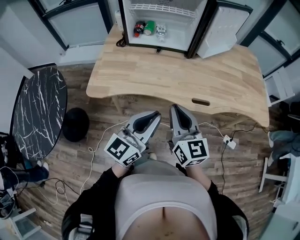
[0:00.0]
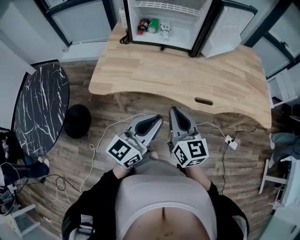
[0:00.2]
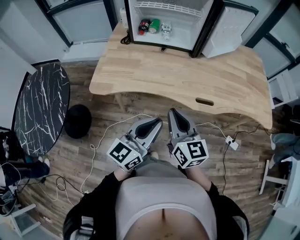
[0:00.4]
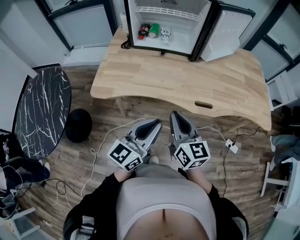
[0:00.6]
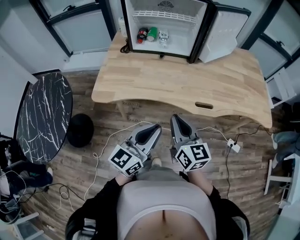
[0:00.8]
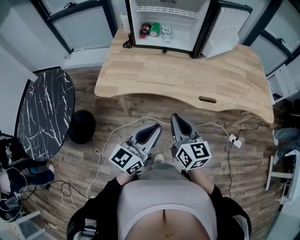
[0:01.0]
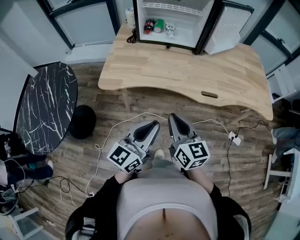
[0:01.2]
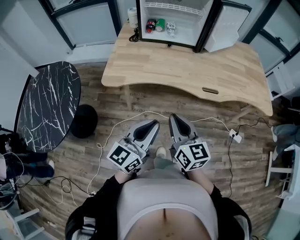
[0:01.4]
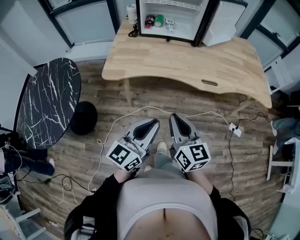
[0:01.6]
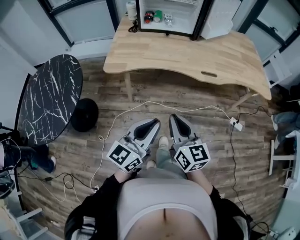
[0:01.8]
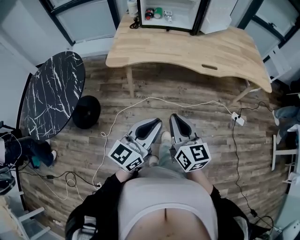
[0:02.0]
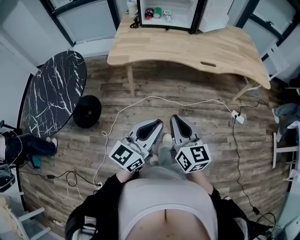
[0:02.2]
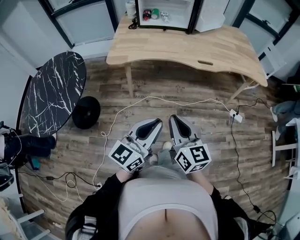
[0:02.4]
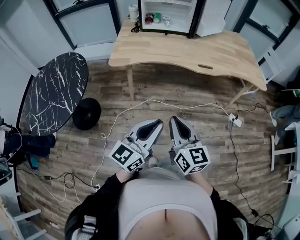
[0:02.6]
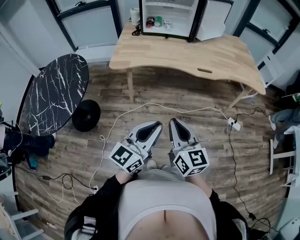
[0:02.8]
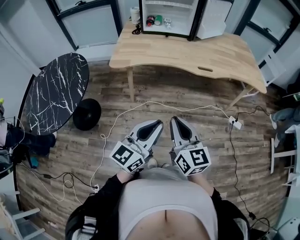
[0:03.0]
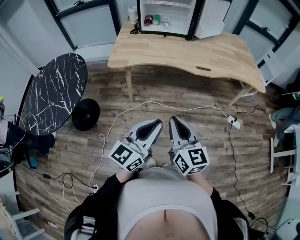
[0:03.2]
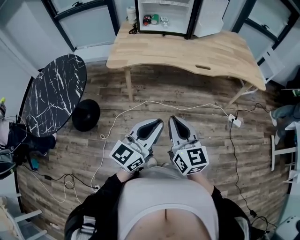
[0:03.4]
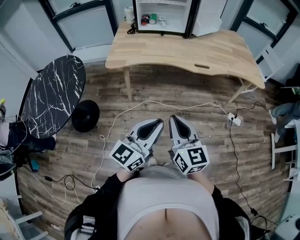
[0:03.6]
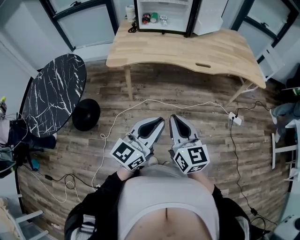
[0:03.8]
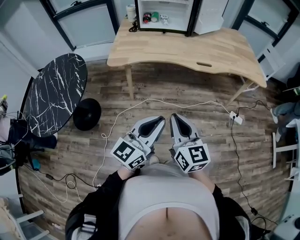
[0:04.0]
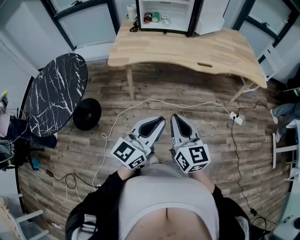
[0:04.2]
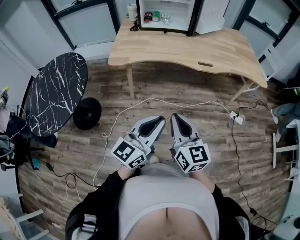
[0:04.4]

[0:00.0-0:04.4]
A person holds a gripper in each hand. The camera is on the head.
0:00.0 to 0:01.4: The two grippers go roughly 15 cm backward and to the left.
0:01.4 to 0:03.0: Both grippers travel together backward, approximately 20 cm.
0:03.0 to 0:04.4: The grippers stay close to where they were, moving slightly.

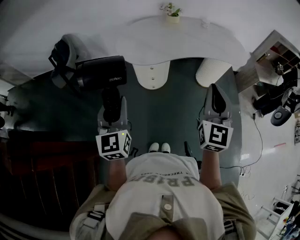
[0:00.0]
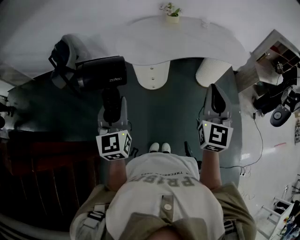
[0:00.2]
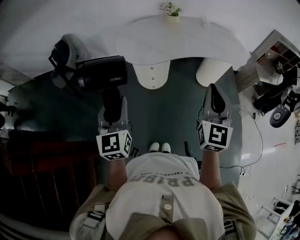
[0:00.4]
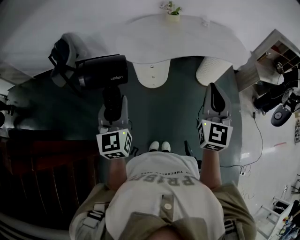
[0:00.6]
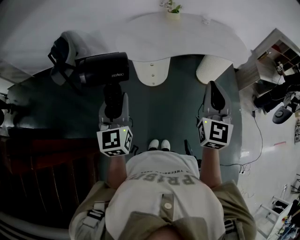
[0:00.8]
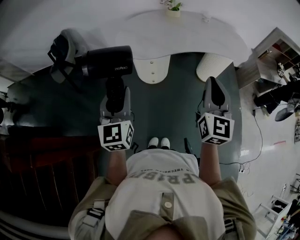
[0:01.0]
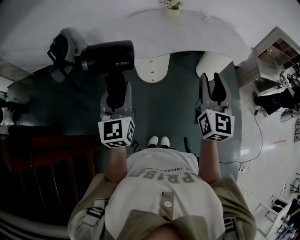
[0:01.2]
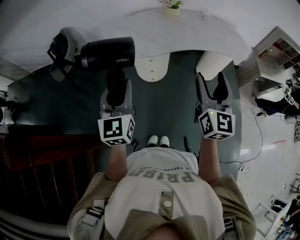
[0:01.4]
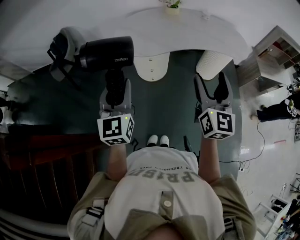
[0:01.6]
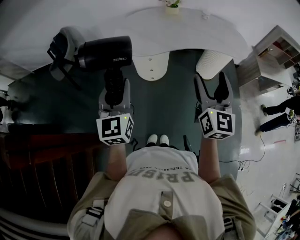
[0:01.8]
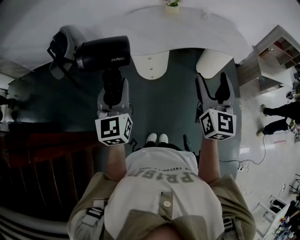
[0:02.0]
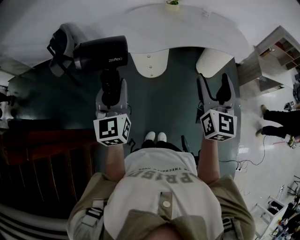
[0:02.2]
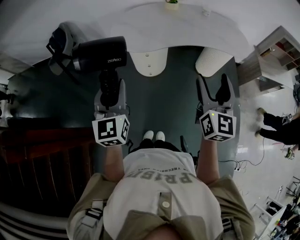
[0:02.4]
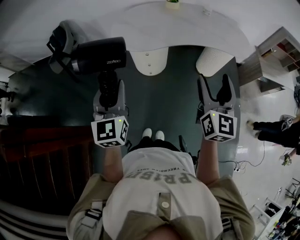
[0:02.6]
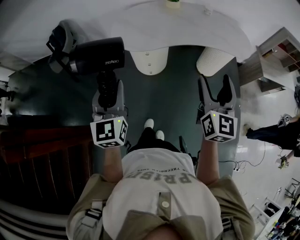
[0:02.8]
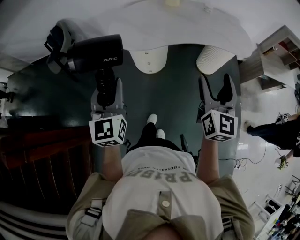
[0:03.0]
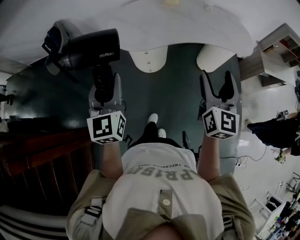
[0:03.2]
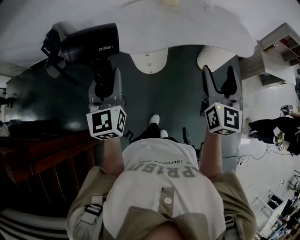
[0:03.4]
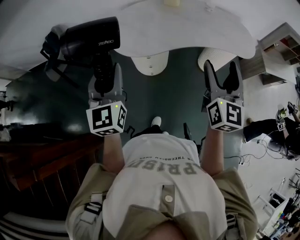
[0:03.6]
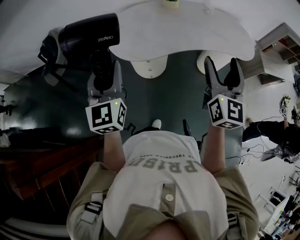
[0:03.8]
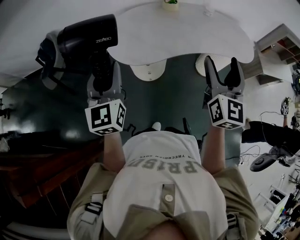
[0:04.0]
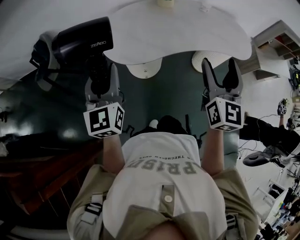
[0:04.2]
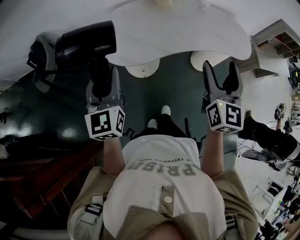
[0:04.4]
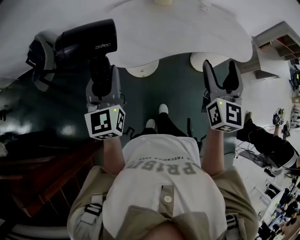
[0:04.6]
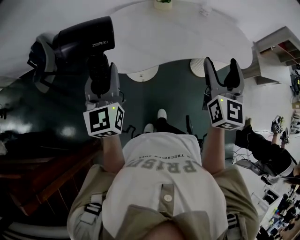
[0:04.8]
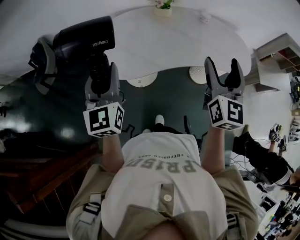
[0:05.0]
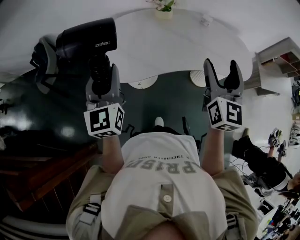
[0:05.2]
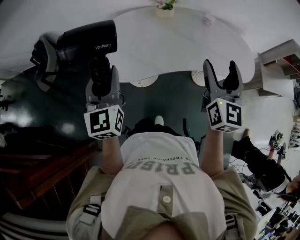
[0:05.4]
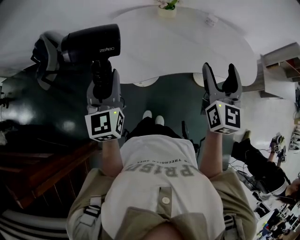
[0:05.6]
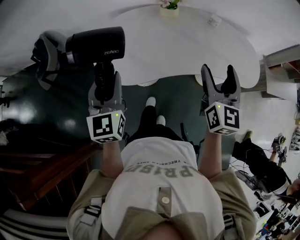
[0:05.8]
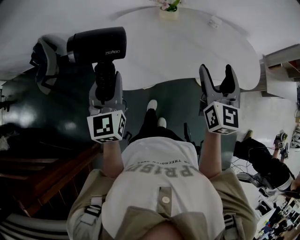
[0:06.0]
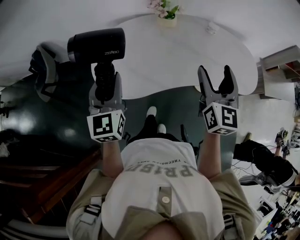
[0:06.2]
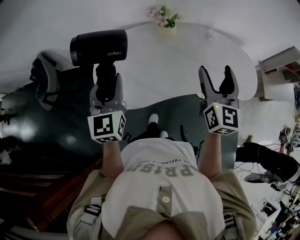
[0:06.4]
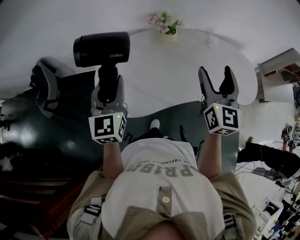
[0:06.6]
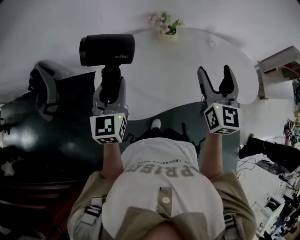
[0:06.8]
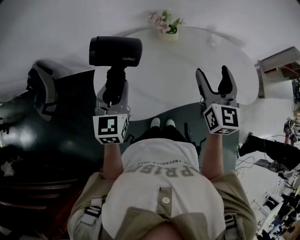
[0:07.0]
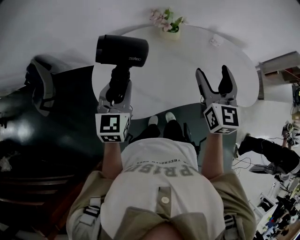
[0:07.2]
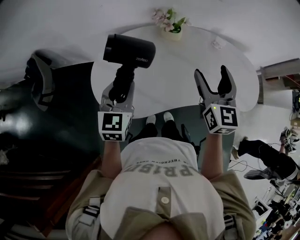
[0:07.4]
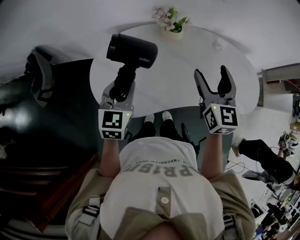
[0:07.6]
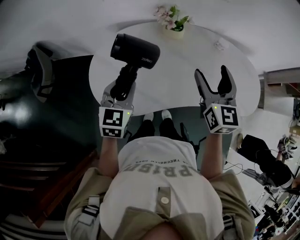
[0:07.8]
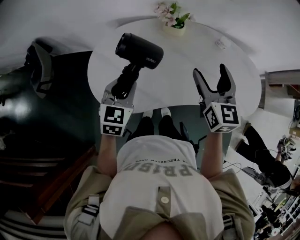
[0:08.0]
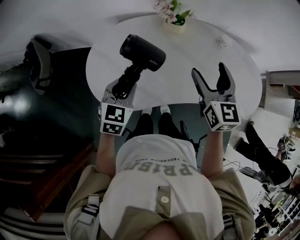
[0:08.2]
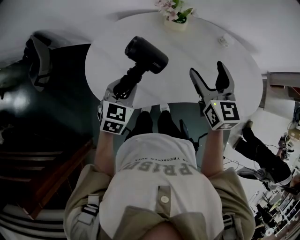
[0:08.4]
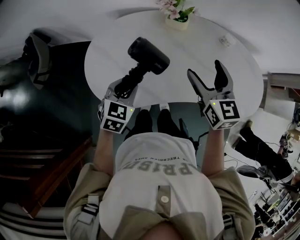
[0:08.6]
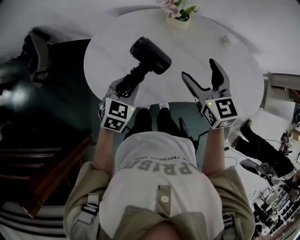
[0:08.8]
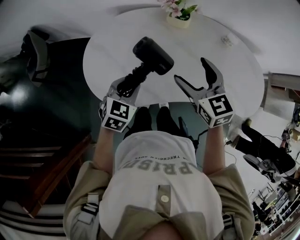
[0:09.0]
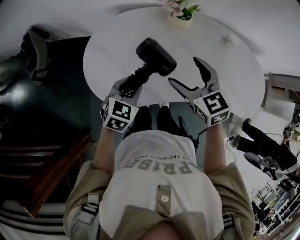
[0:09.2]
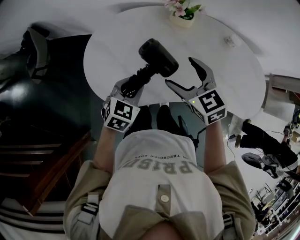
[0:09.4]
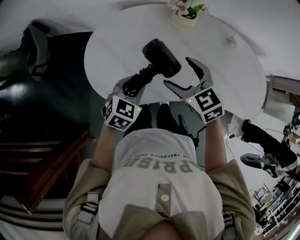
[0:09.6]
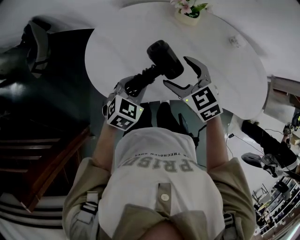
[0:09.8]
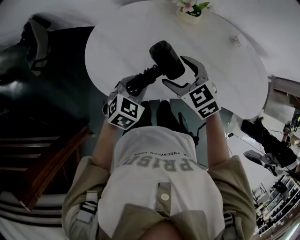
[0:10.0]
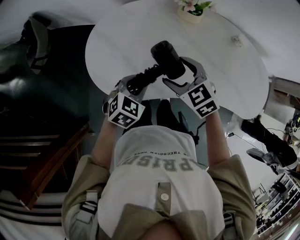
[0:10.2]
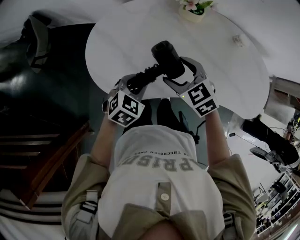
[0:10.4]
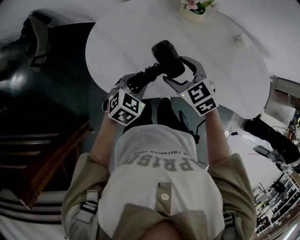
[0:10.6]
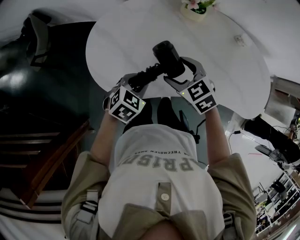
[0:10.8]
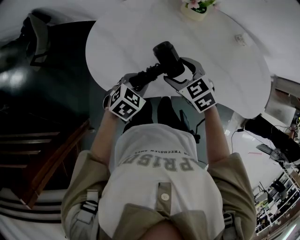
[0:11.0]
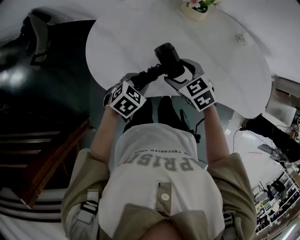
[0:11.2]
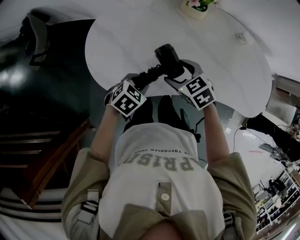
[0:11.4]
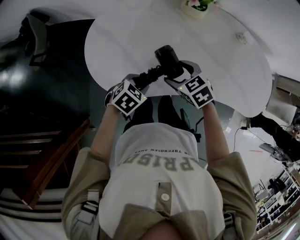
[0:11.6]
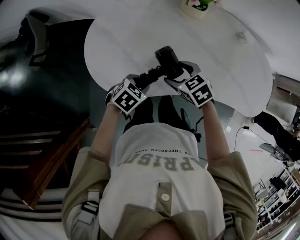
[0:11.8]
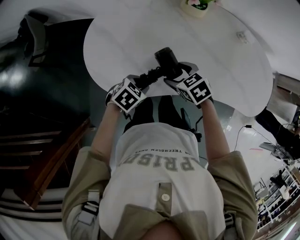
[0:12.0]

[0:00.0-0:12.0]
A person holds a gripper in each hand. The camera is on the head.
0:00.0 to 0:01.6: The right gripper opens its fingers; the left gripper changes place by some 5 cm.
0:01.6 to 0:03.0: There are only small adjustments of the grippers.
0:03.0 to 0:04.4: The grippers both shift forward by roughly 20 cm.
0:04.4 to 0:06.0: The left gripper heads forward and to the right, covering some 15 cm. The right gripper goes roughly 20 cm forward.
0:06.0 to 0:07.6: The right gripper moves forward, about 15 cm, while the left gripper shifts about 15 cm forward and downward.
0:07.6 to 0:09.0: The right gripper goes some 10 cm downward and to the left, and changes its angle by some 30 degrees; the left gripper moves downward, some 10 cm, and swivels some 20 degrees.
0:09.0 to 0:10.4: The right gripper travels downward and to the left by about 10 cm, and changes its angle by some 30 degrees.
0:10.4 to 0:12.0: The two grippers go approximately 10 cm downward. The right gripper swivels some 20 degrees. The left gripper turns by some 30 degrees.

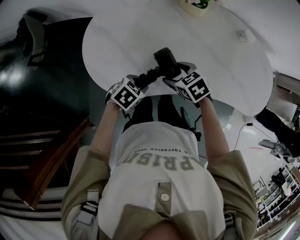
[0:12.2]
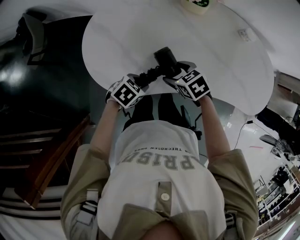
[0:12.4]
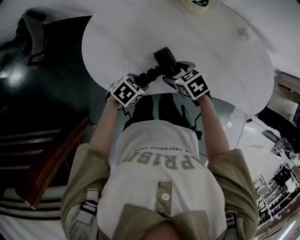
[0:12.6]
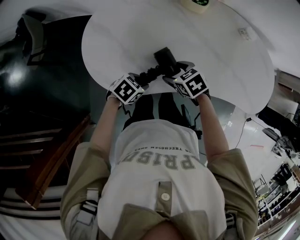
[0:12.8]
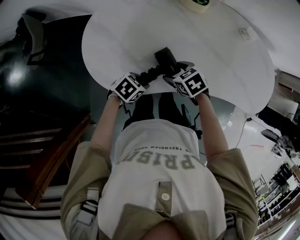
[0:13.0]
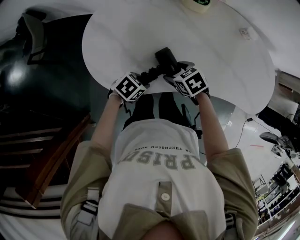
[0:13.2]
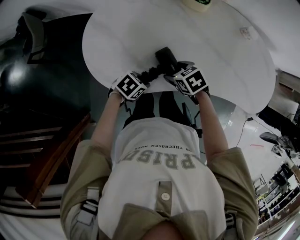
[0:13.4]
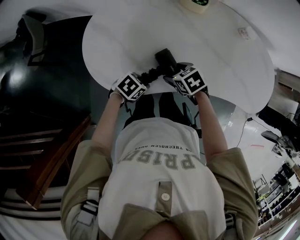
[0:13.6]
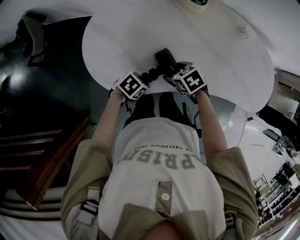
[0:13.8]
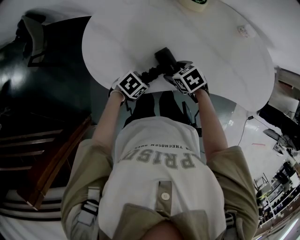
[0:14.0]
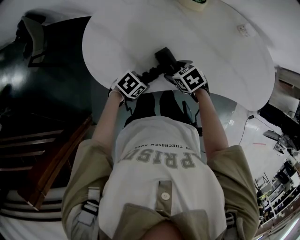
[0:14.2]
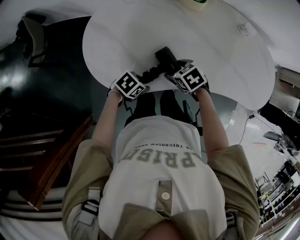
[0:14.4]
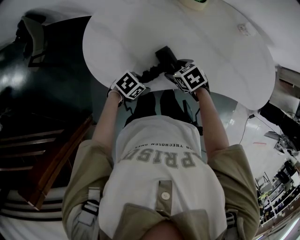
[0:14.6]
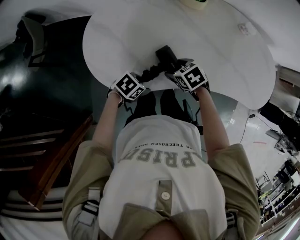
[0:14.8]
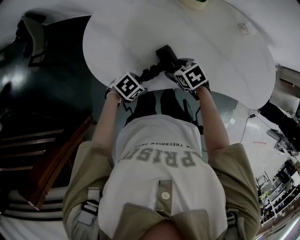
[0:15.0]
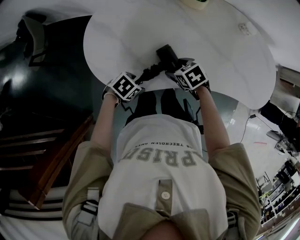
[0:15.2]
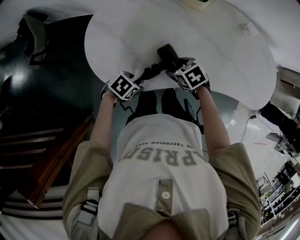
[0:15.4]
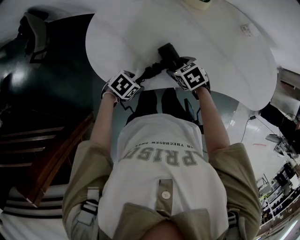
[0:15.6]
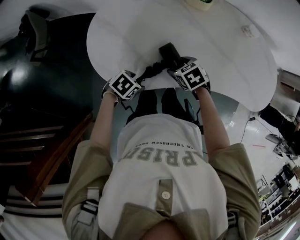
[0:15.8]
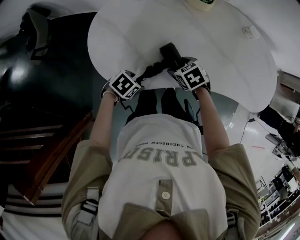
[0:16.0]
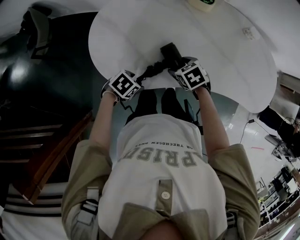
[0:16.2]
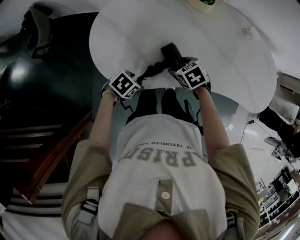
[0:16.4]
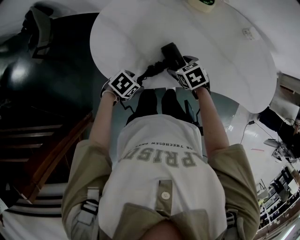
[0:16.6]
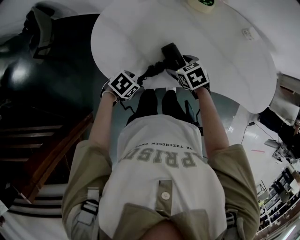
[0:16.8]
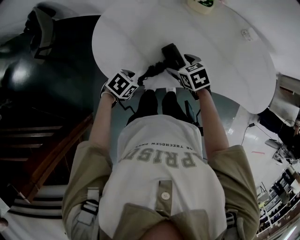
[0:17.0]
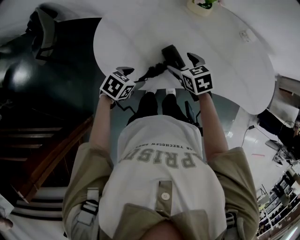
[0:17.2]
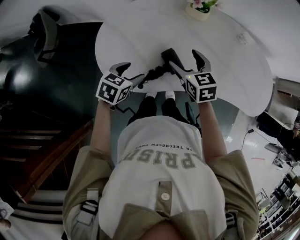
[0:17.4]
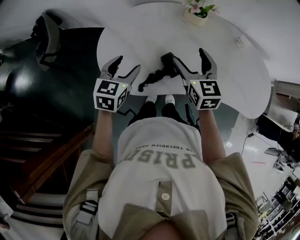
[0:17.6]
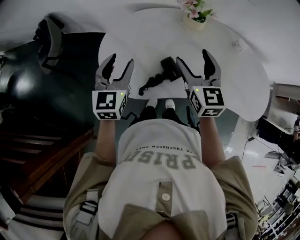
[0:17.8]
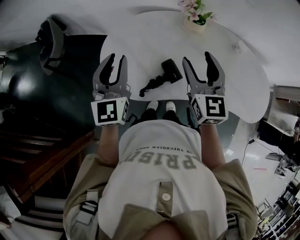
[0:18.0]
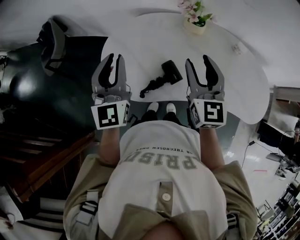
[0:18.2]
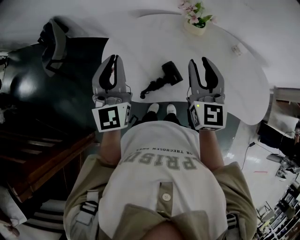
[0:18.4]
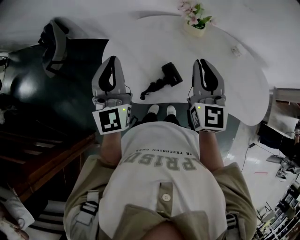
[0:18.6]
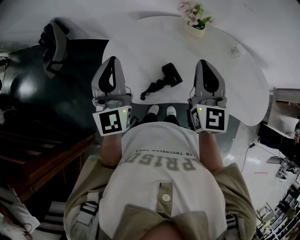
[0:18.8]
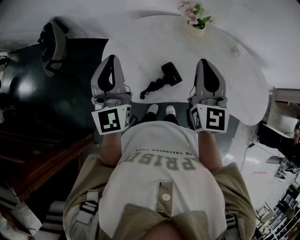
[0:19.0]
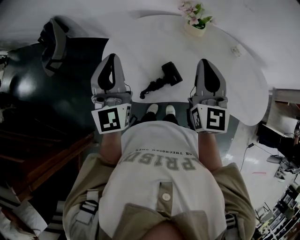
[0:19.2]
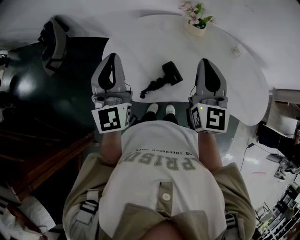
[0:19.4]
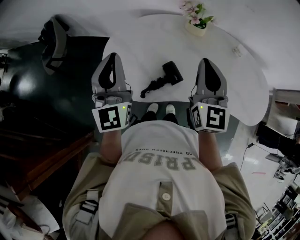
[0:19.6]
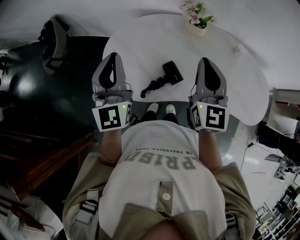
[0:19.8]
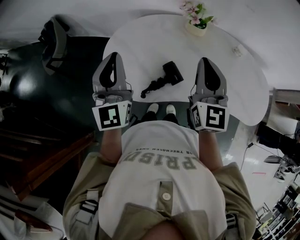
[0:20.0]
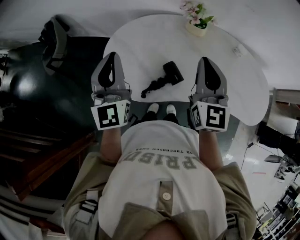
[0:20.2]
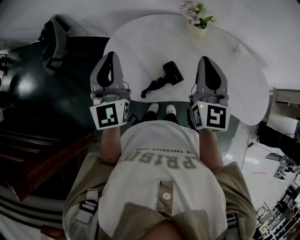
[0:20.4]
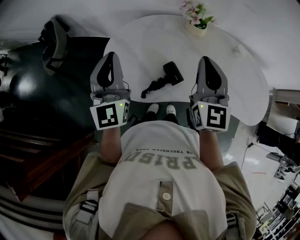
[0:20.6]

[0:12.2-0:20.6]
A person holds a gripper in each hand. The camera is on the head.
0:12.2 to 0:13.6: The grippers stay close to where they were, moving slightly.
0:13.6 to 0:15.0: The left gripper opens.
0:15.0 to 0:16.4: The grippers stay close to where they were, moving slightly.
0:16.4 to 0:17.8: Both grippers move upward, approximately 25 cm. The right gripper points its fingers approximately 50 degrees further upward, while the left gripper points its fingers some 40 degrees further upward.
0:17.8 to 0:19.2: The right gripper shifts some 10 cm upward, and closes, while the left gripper shifts approximately 10 cm upward, changes its angle by some 30 degrees, and closes its fingers.
0:19.2 to 0:20.6: The grippers move only a little.
